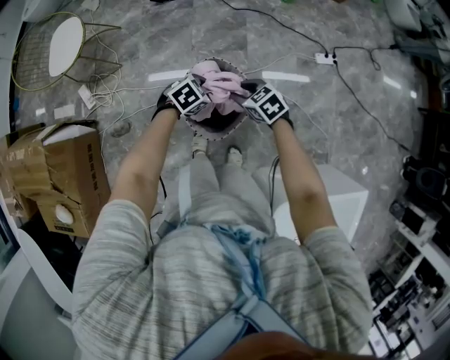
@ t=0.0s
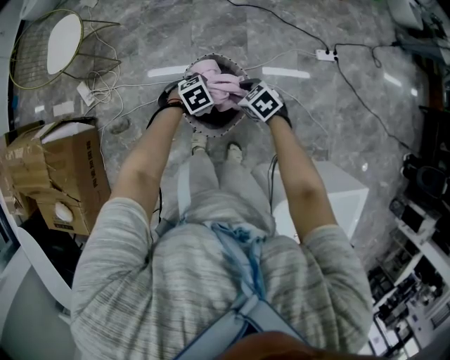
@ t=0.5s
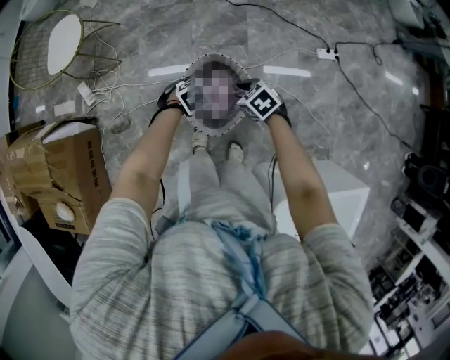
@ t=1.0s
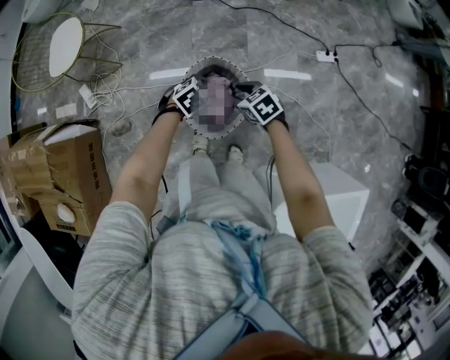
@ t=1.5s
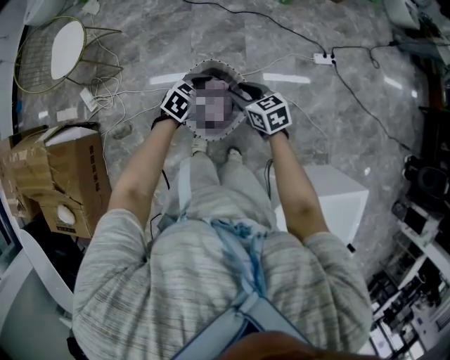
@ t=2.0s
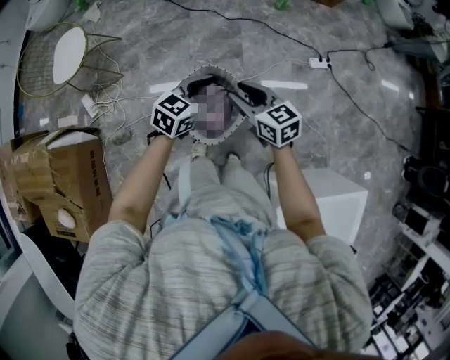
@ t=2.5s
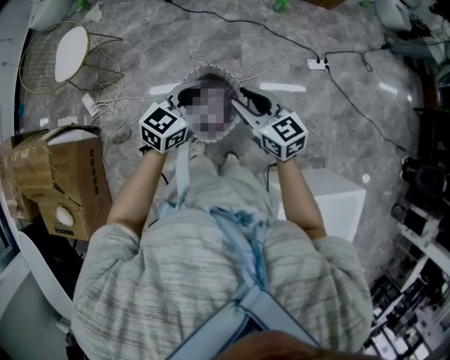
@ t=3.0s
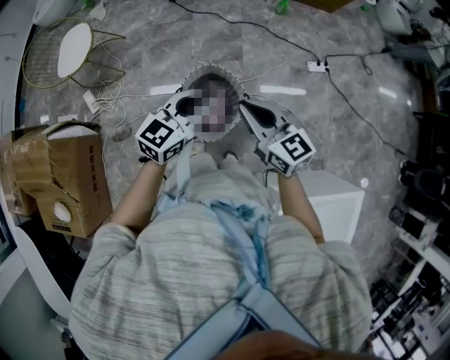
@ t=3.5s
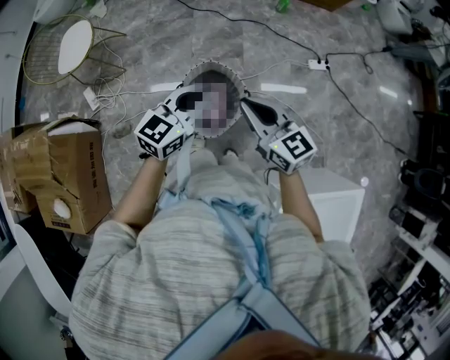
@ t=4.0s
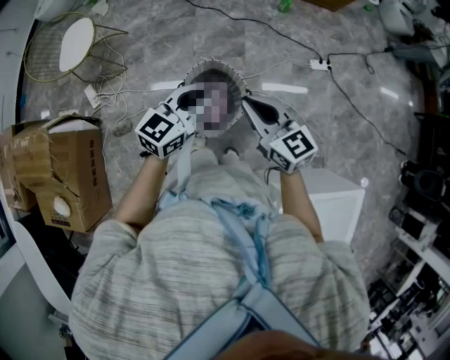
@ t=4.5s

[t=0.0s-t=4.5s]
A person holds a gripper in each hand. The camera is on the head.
t=0.0s to t=2.0s: The left gripper goes roughly 5 cm upward; the right gripper swivels approximately 20 degrees.
t=2.0s to t=4.5s: The grippers both shift upward and backward by roughly 20 cm. The right gripper rotates approximately 30 degrees, and closes. The left gripper points its fingers approximately 30 degrees further upward, and closes its fingers.

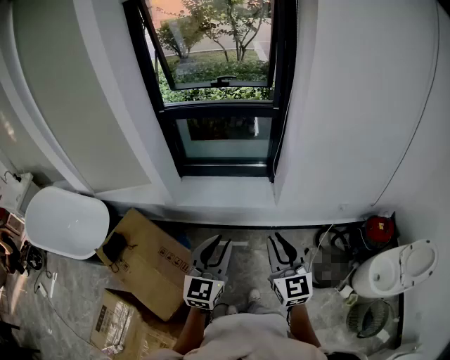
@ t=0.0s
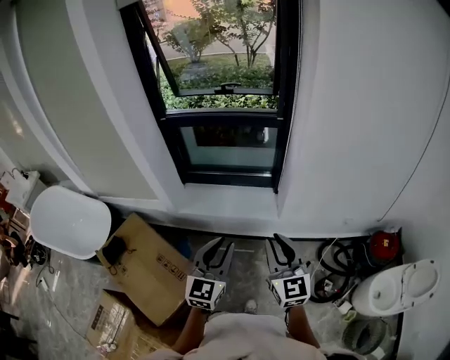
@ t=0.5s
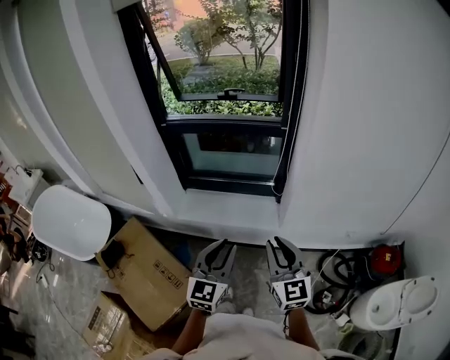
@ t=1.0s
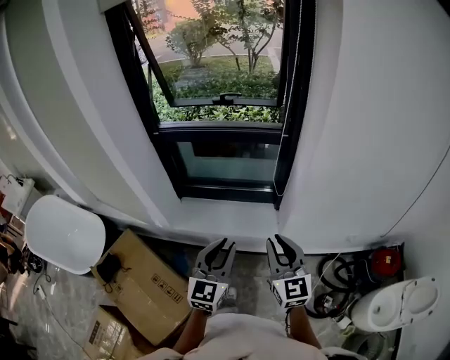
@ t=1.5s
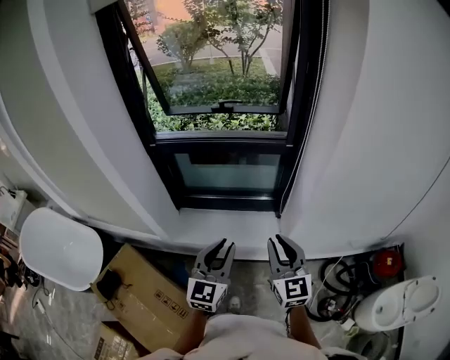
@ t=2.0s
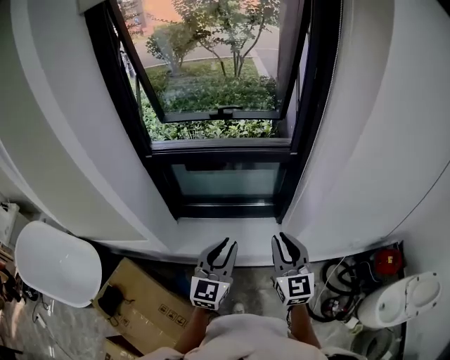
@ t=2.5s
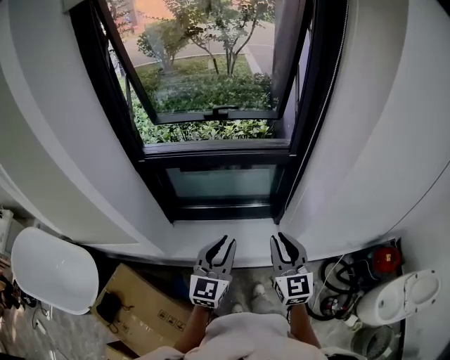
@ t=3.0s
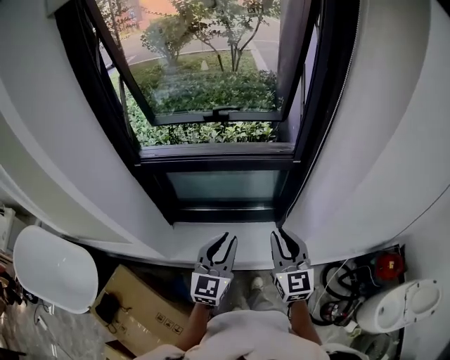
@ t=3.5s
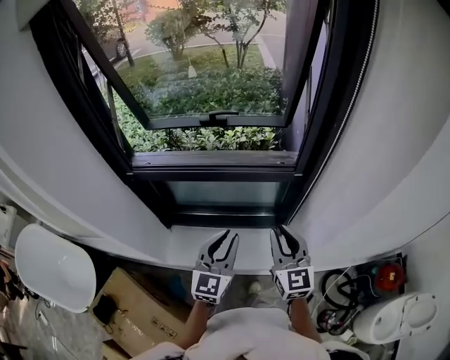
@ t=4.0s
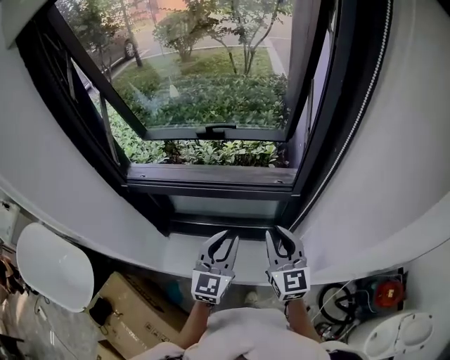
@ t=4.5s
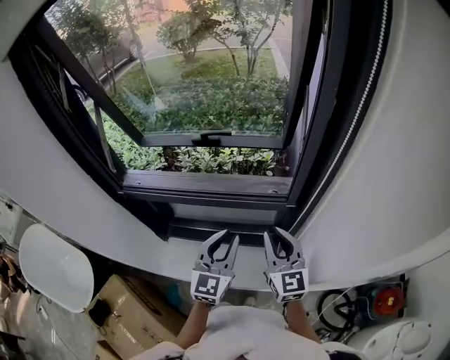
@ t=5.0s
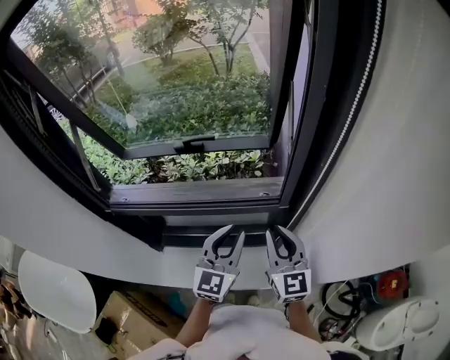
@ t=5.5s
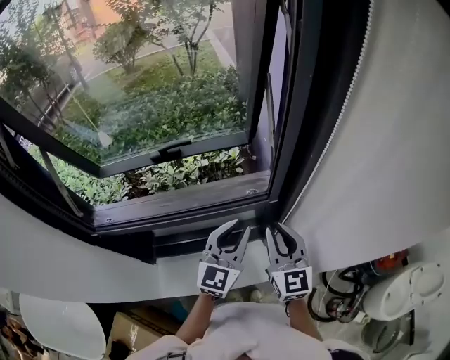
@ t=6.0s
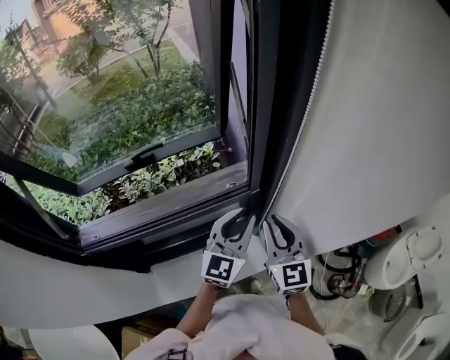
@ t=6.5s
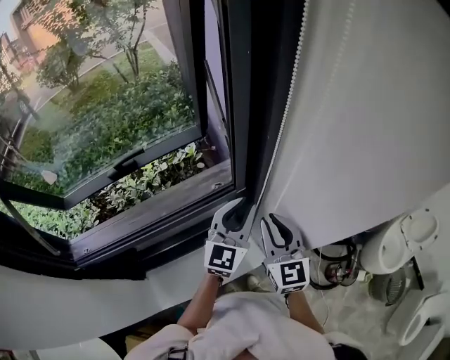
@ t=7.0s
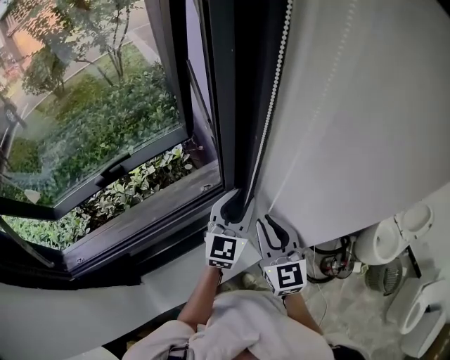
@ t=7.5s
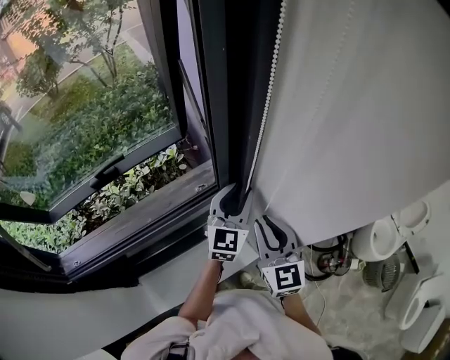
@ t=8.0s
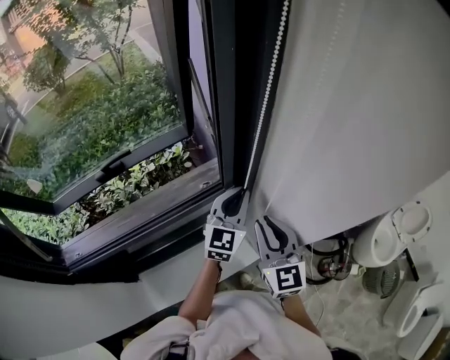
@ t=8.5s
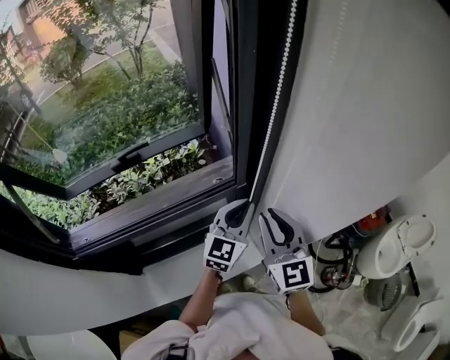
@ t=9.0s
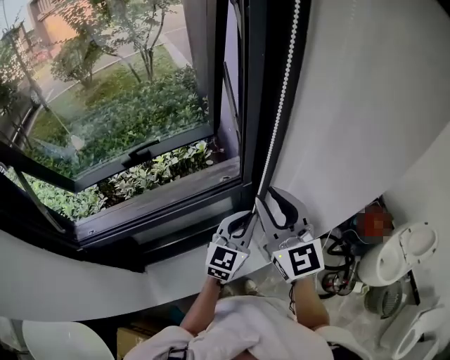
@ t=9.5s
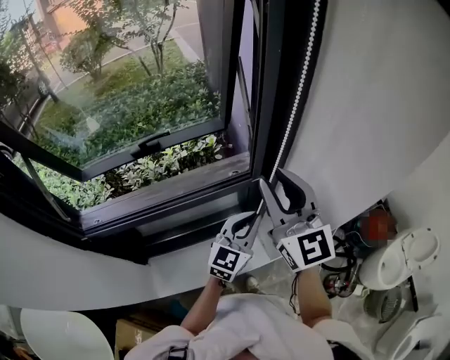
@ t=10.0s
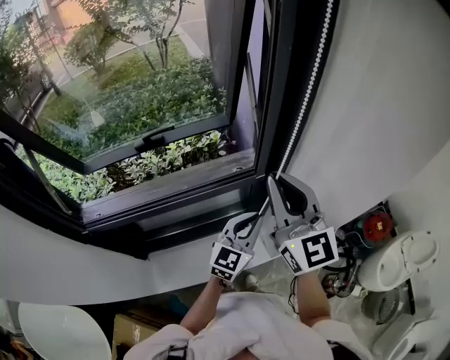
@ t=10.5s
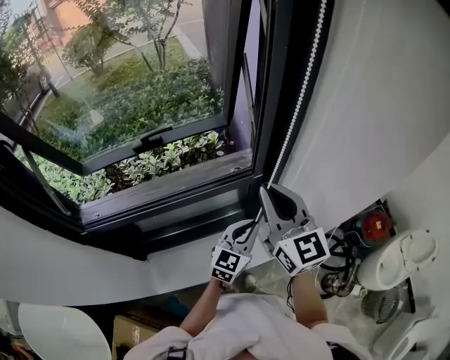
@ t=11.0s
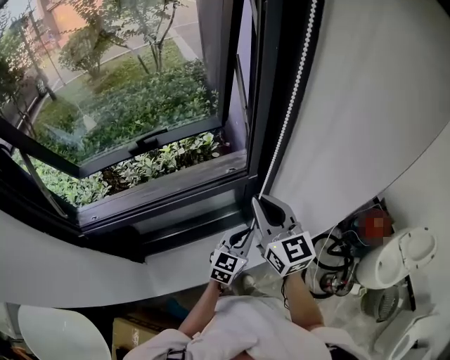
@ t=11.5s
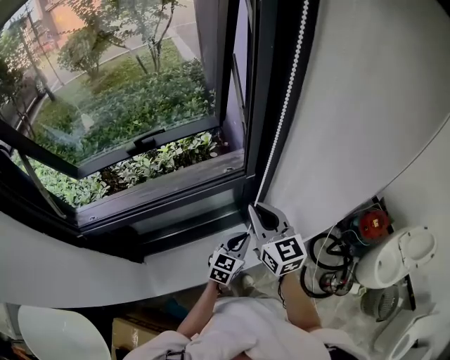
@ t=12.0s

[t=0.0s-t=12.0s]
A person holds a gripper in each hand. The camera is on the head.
t=0.0s to t=2.0s: The two grippers go roughly 25 cm forward.
t=2.0s to t=4.0s: Both grippers move forward, roughly 25 cm.
t=4.0s to t=6.0s: Both grippers travel together forward and to the right, about 15 cm.
t=6.0s to t=8.0s: The left gripper moves to the right and forward, some 15 cm. The right gripper heads to the right, covering roughly 5 cm.
t=8.0s to t=10.0s: The right gripper heads upward and to the left, covering some 20 cm, and rotates approximately 30 degrees; the left gripper shifts about 10 cm backward, and closes.
t=10.0s to t=12.0s: Both grippers move downward, roughly 15 cm. The right gripper swivels roughly 20 degrees, and closes its fingers.

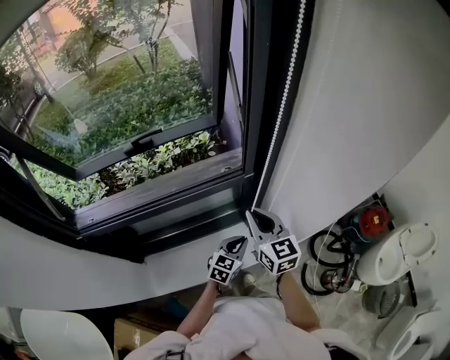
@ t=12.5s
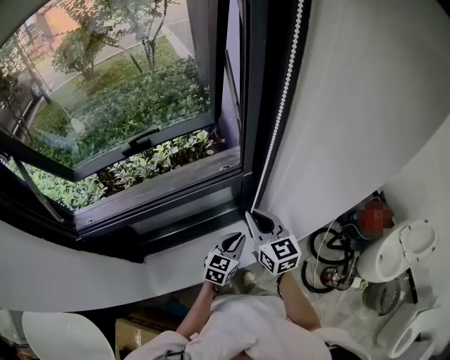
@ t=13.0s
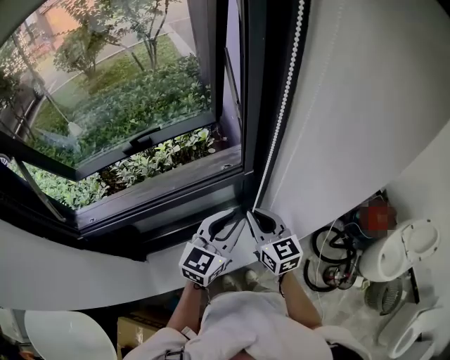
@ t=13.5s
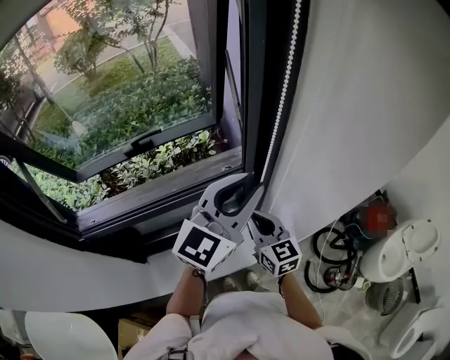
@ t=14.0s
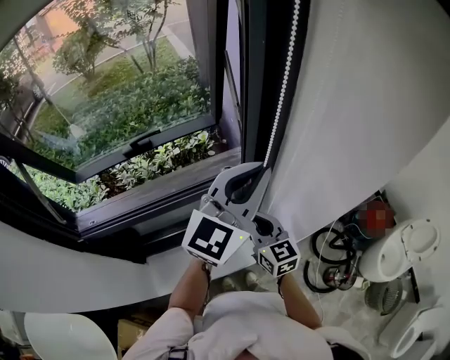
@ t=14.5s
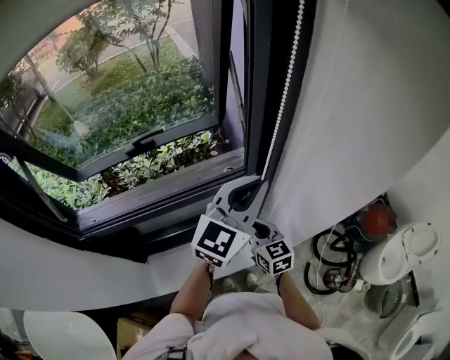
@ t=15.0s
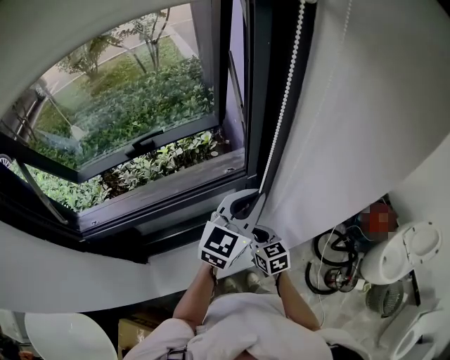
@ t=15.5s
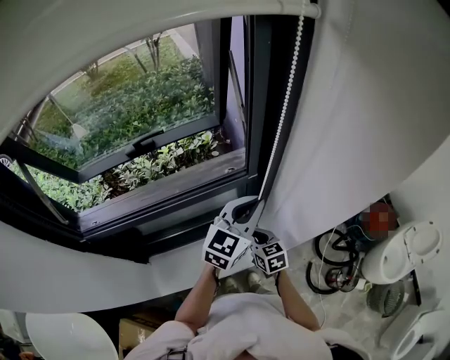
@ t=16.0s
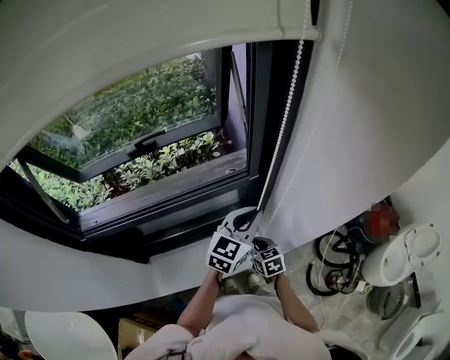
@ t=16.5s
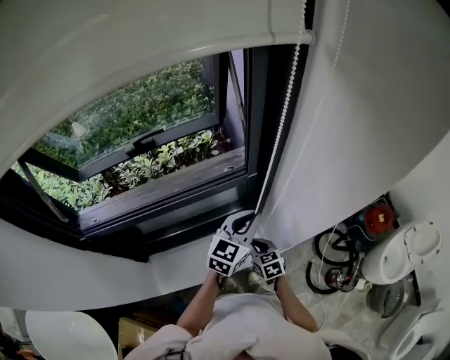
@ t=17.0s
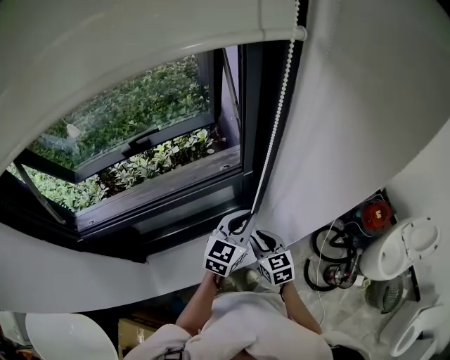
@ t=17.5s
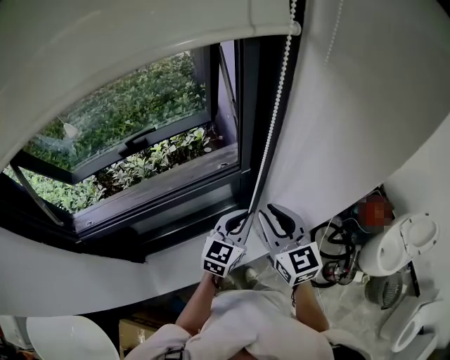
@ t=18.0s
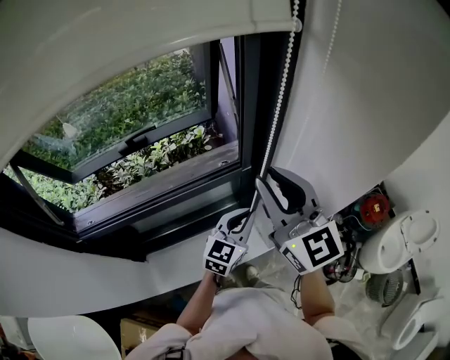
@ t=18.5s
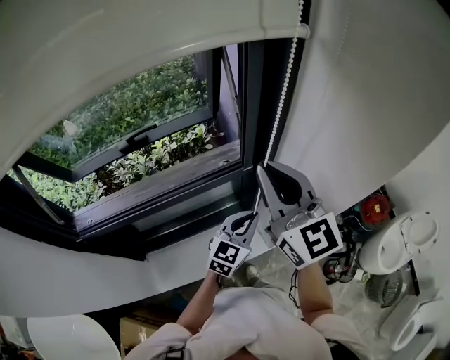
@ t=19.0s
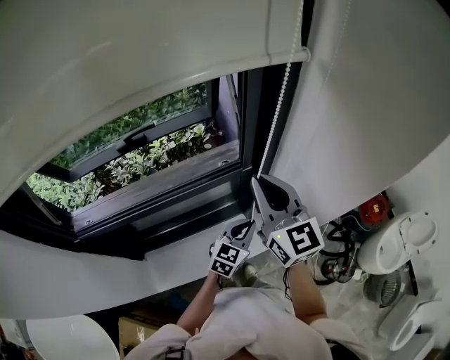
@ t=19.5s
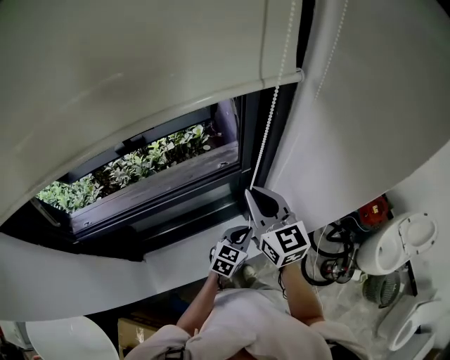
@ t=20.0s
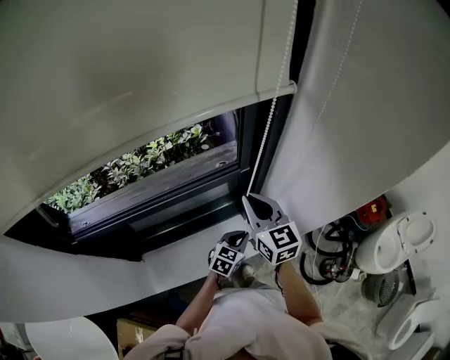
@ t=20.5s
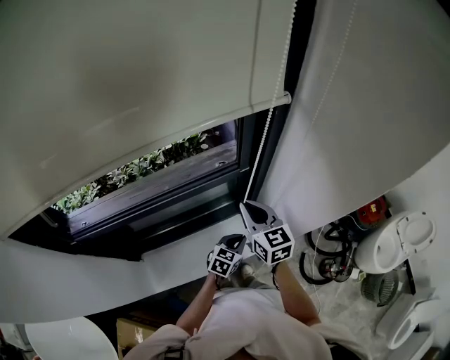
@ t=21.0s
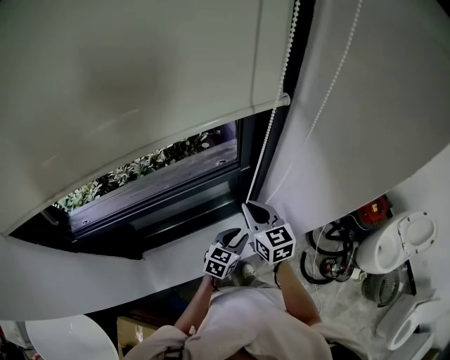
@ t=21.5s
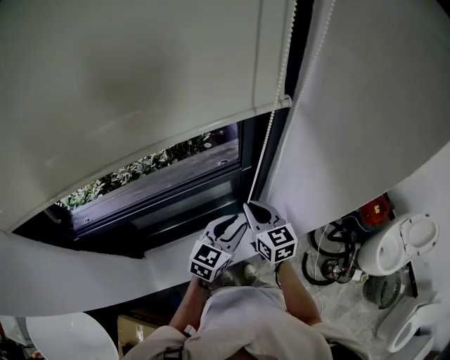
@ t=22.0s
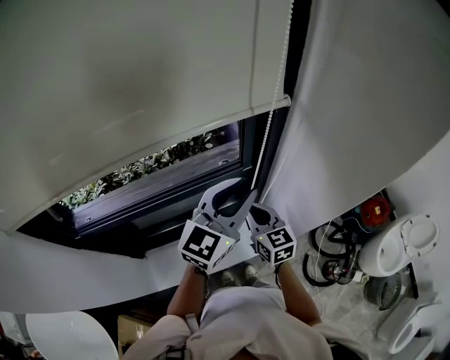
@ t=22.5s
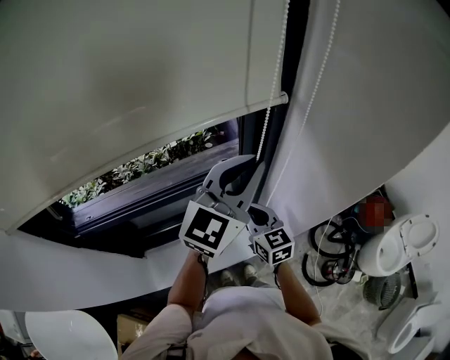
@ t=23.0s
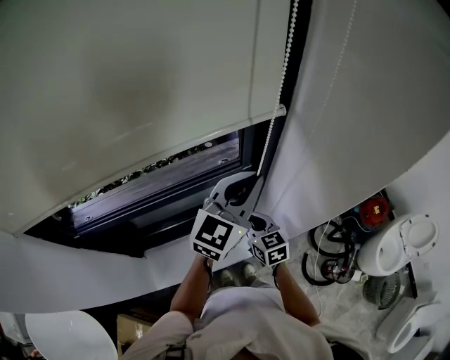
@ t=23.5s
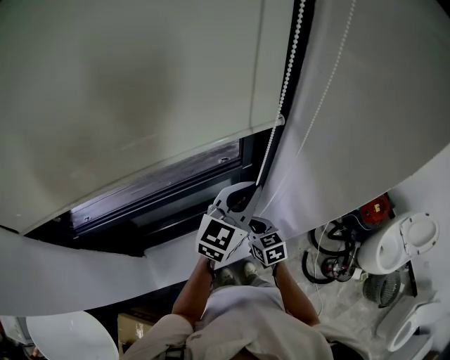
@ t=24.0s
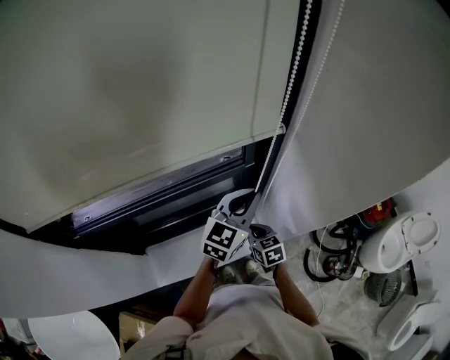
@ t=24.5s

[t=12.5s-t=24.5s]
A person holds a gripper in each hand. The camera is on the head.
t=12.5s to t=14.5s: The left gripper is displaced upward by about 40 cm, and angles its fingers upward, by roughly 30 degrees.
t=14.5s to t=16.5s: Both grippers move downward, approximately 20 cm. The left gripper changes its angle by some 20 degrees; the right gripper rotates approximately 30 degrees.
t=16.5s to t=18.5s: The right gripper heads upward, covering some 40 cm, and points its fingers approximately 50 degrees further upward.
t=18.5s to t=20.5s: The two grippers go roughly 20 cm downward. The left gripper rotates some 20 degrees; the right gripper swivels some 20 degrees, and closes its fingers.
t=20.5s to t=22.5s: The left gripper is displaced upward by roughly 35 cm, points its fingers some 30 degrees further upward, and opens up, while the right gripper goes some 5 cm downward.
t=22.5s to t=24.5s: The right gripper moves downward, roughly 15 cm, and turns by about 20 degrees. Meanwhile the left gripper goes some 10 cm downward, and closes.
